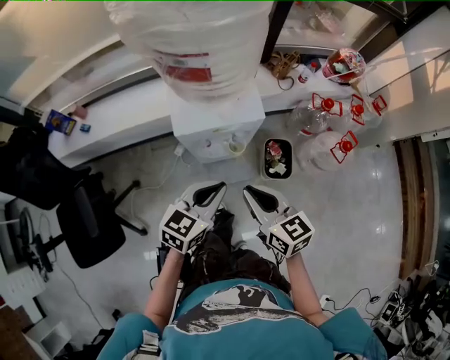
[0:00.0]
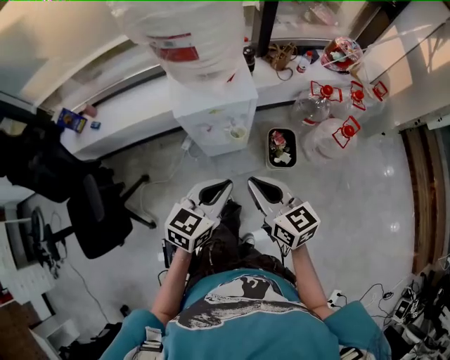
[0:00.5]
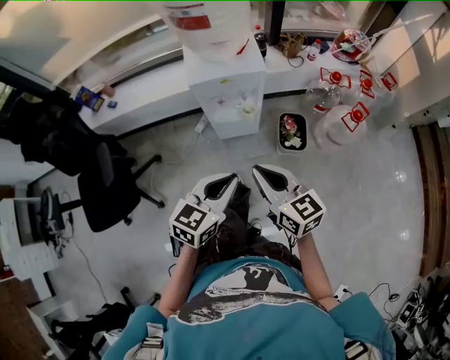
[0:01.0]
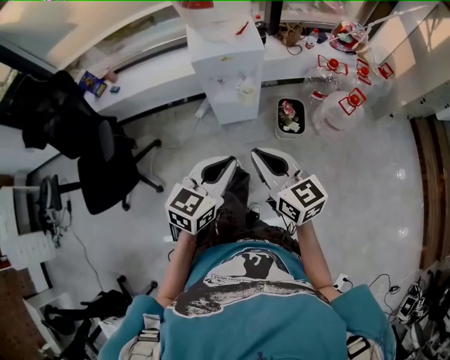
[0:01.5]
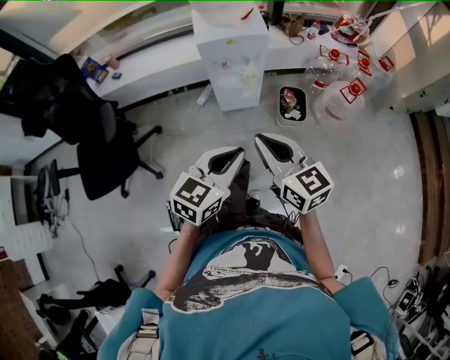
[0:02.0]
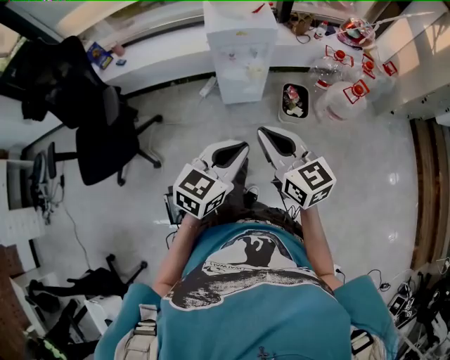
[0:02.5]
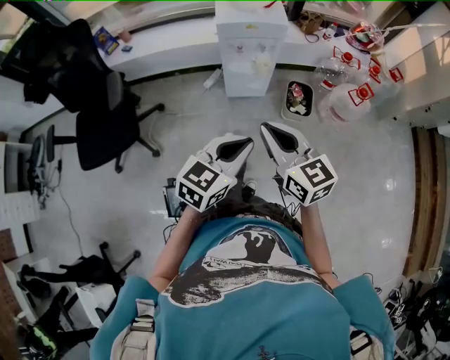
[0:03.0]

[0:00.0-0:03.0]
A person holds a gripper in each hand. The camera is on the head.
0:00.0 to 0:01.5: The grippers both shift backward by some 25 cm.
0:01.5 to 0:03.0: Both grippers move backward, roughly 10 cm.

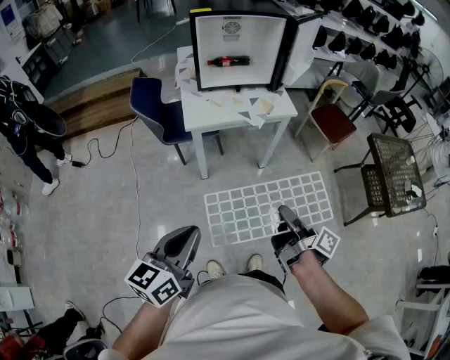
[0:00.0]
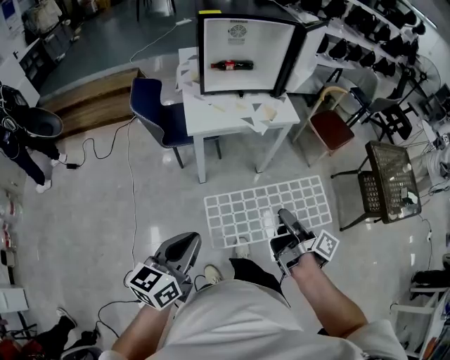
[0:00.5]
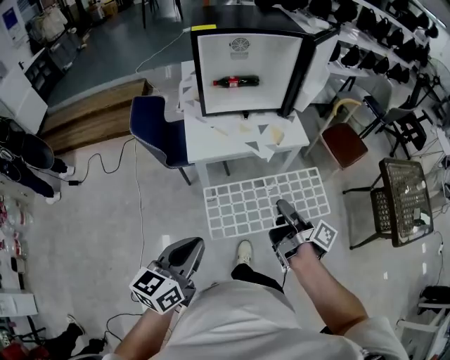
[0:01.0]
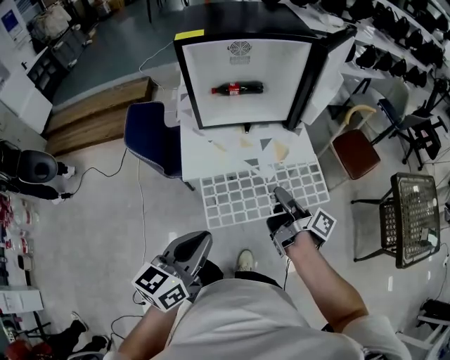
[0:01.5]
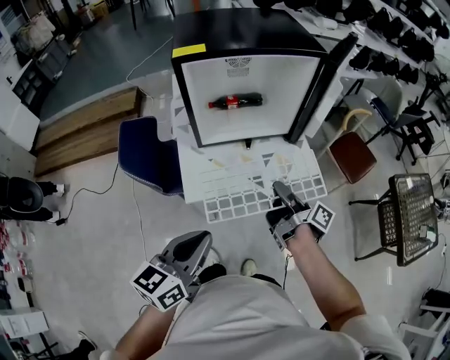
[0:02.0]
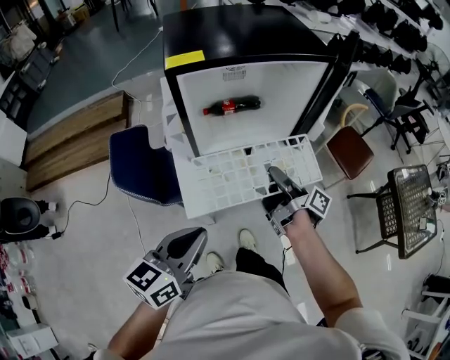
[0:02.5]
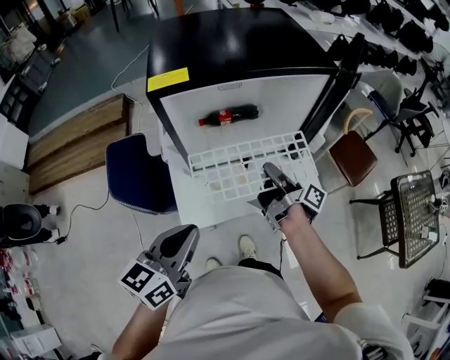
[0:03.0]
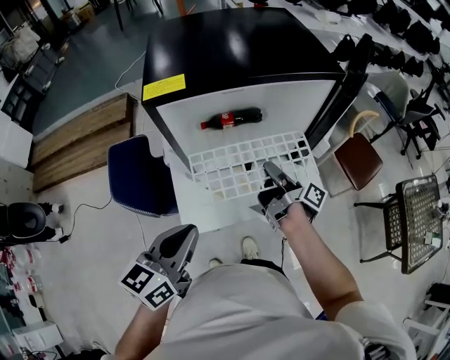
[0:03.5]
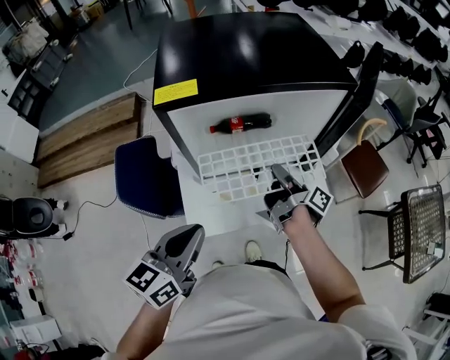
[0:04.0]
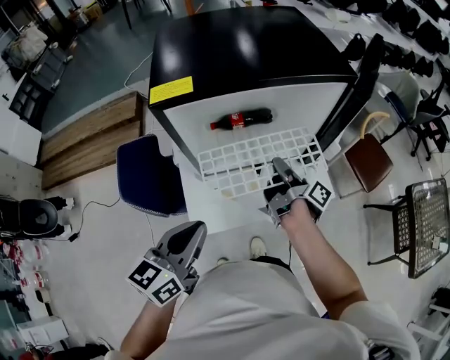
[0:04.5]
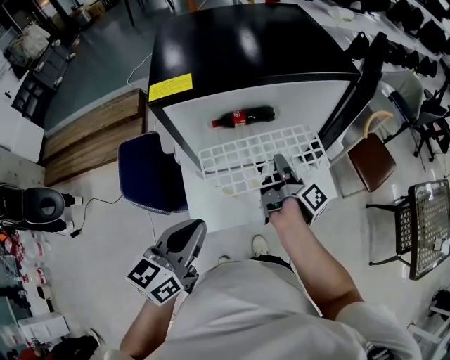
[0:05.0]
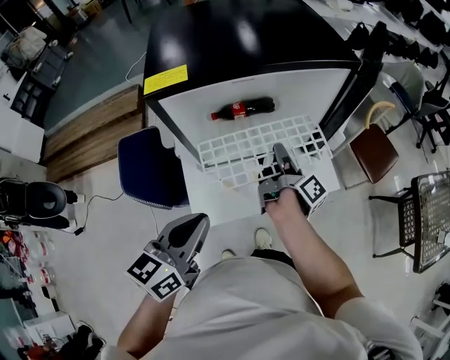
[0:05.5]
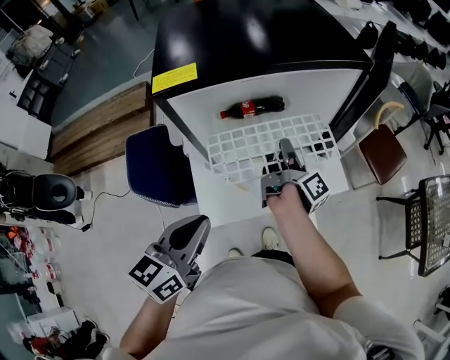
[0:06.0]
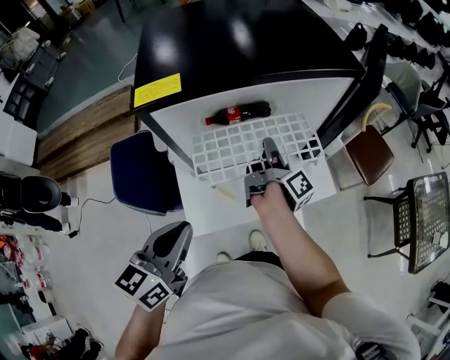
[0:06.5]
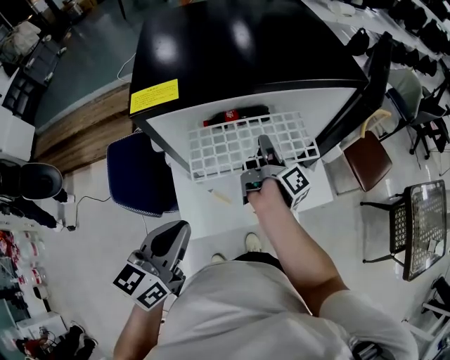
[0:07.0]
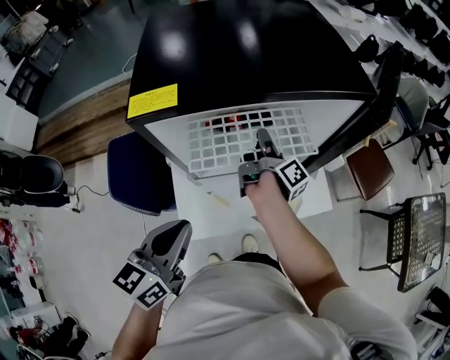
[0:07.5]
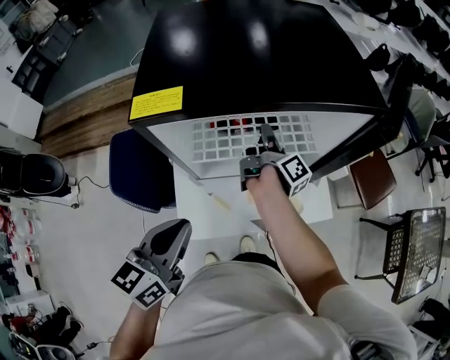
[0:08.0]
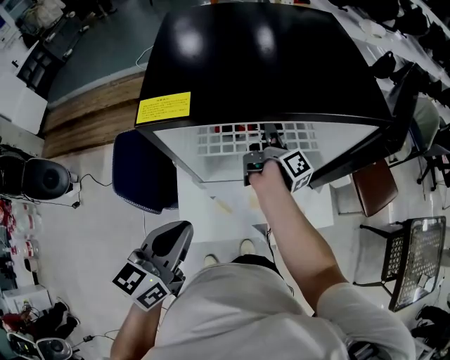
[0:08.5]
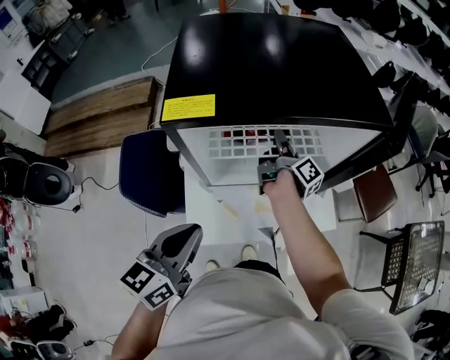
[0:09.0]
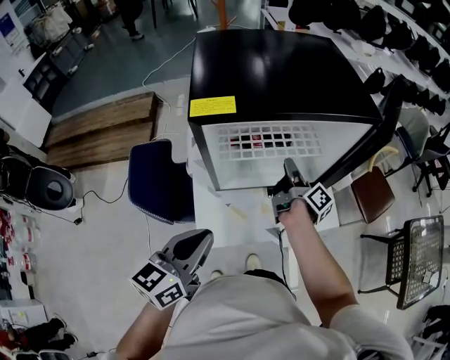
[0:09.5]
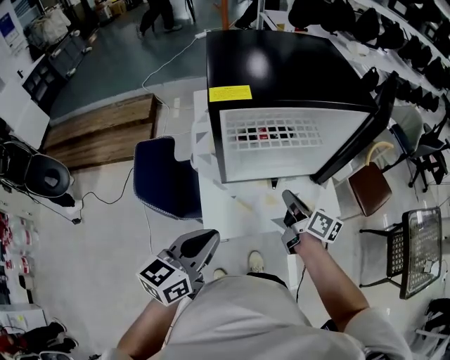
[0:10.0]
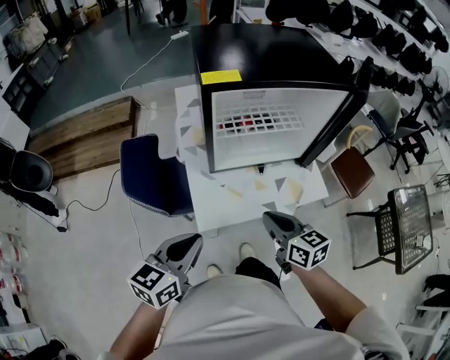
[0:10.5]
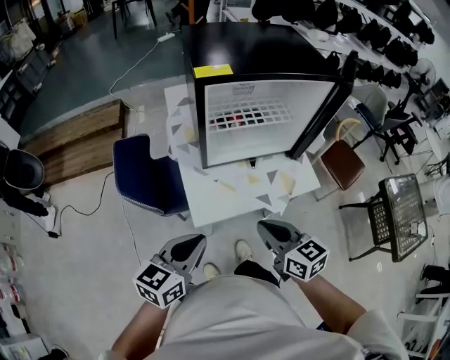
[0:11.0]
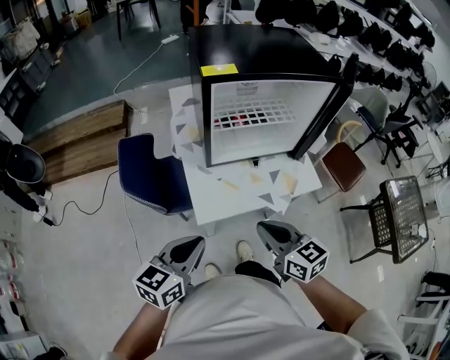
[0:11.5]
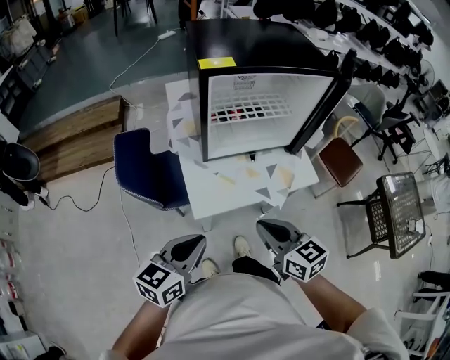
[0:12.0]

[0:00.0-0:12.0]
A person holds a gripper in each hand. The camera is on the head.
0:00.0 to 0:02.0: The left gripper changes place by approximately 35 cm.
0:02.0 to 0:04.0: The left gripper ends up approximately 15 cm from where it was.
0:06.0 to 0:08.0: The left gripper shifts by some 5 cm.
0:08.0 to 0:10.0: The left gripper changes place by some 10 cm.
0:10.0 to 0:12.0: The left gripper moves roughly 10 cm.

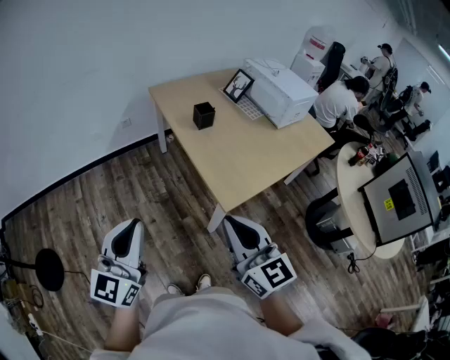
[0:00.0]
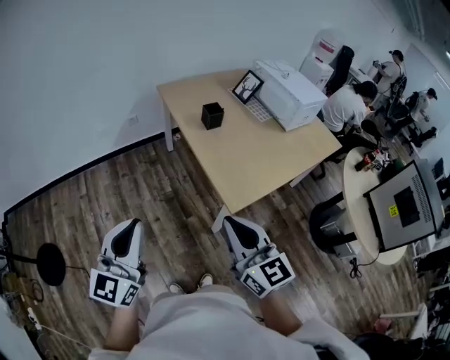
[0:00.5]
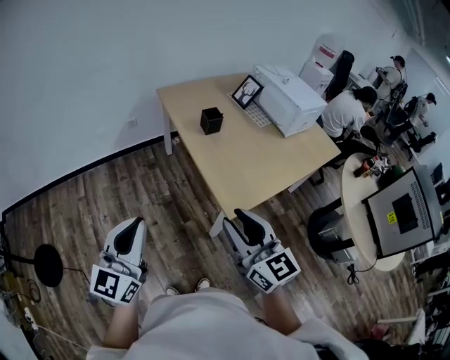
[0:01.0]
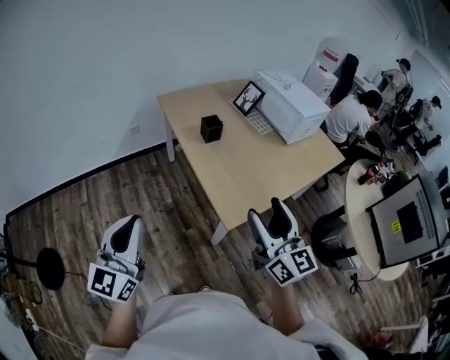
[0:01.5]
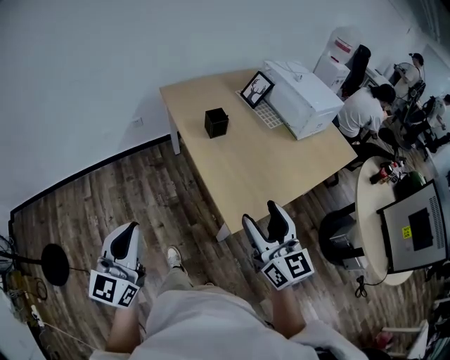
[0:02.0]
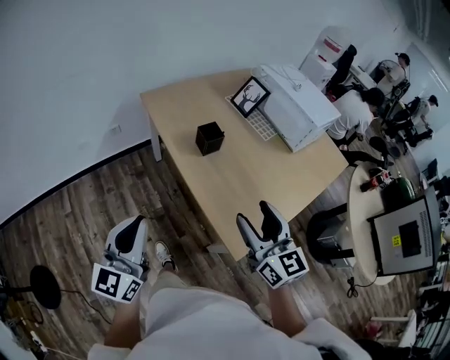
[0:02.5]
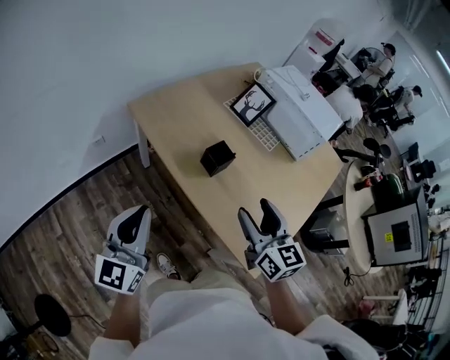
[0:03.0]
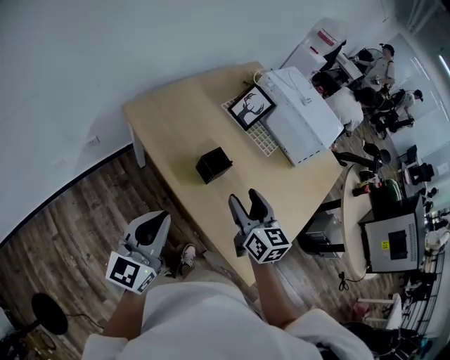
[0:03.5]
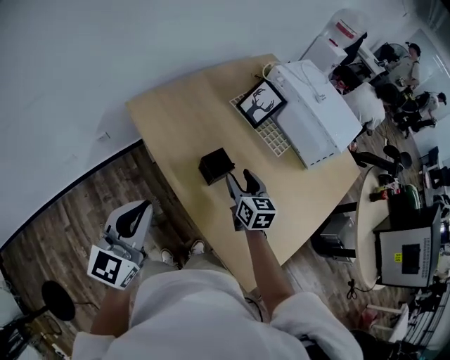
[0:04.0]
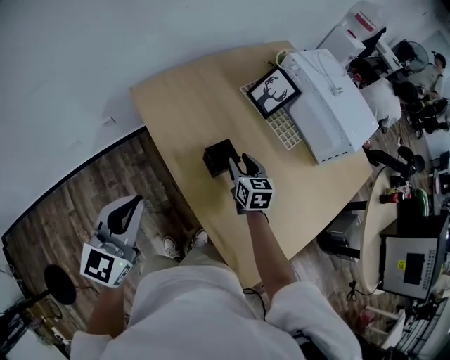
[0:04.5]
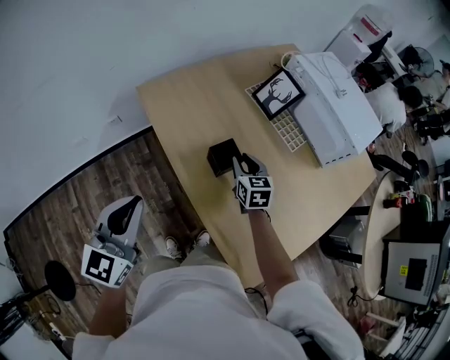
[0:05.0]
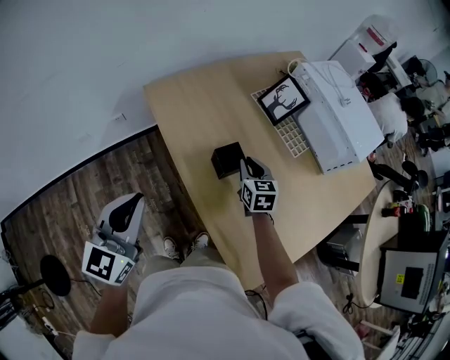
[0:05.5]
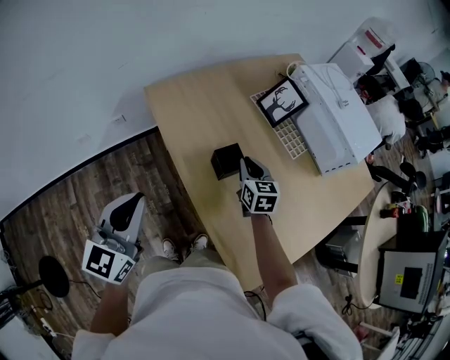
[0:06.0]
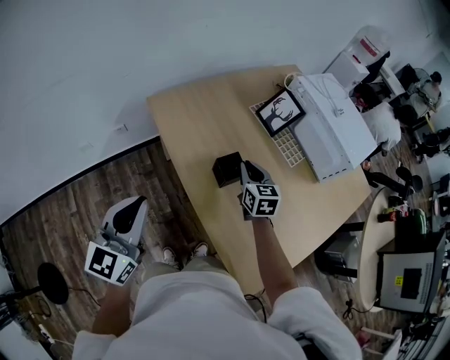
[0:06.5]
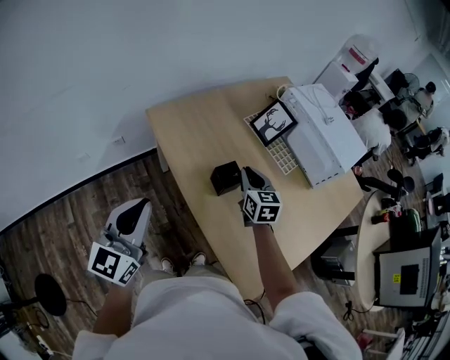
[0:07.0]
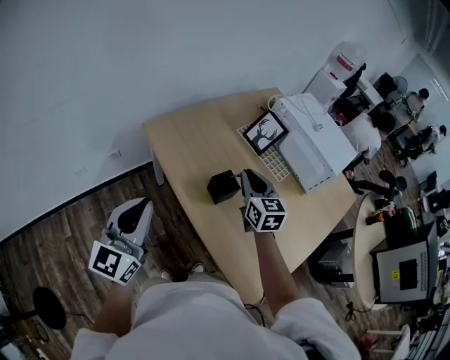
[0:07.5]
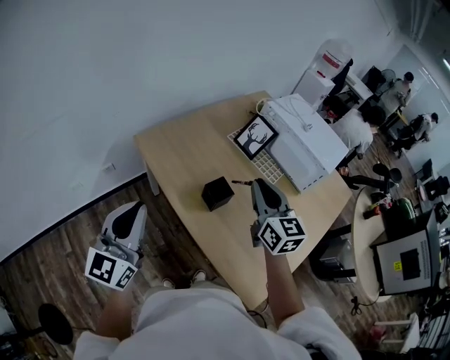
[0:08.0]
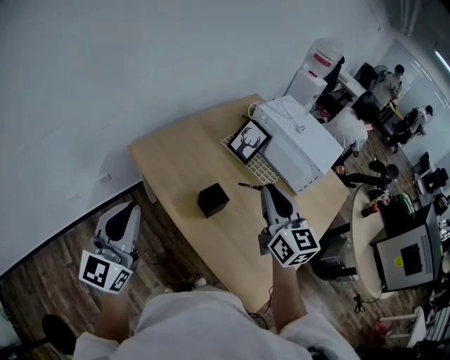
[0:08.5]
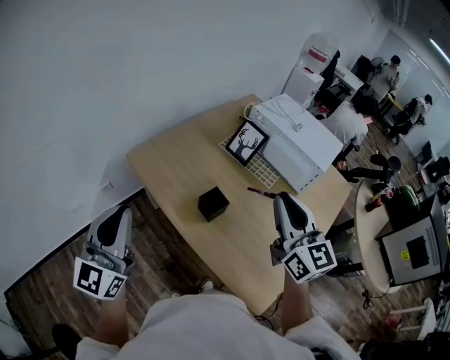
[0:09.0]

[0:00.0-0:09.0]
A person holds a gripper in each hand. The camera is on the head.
0:00.0 to 0:02.0: The right gripper heads forward and to the right, covering about 15 cm, and opens, while the left gripper is displaced forward by about 10 cm.
0:02.0 to 0:04.5: Both grippers are carried forward, about 50 cm. The left gripper swivels about 20 degrees. The right gripper moves downward, about 25 cm, tilts its fingers about 30 degrees downward, and closes its fingers.
0:04.5 to 0:07.0: The right gripper is displaced upward by about 10 cm, and closes up; the left gripper ends up some 5 cm from where it was.
0:07.0 to 0:09.0: The right gripper travels upward and backward by about 25 cm, and turns by about 30 degrees; the left gripper travels upward by approximately 10 cm.

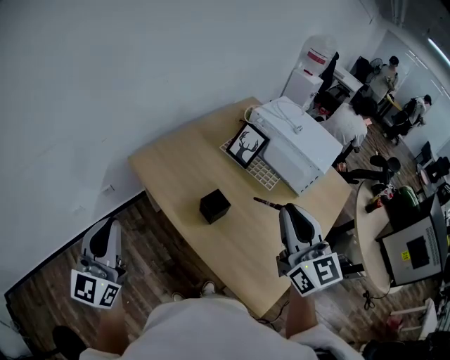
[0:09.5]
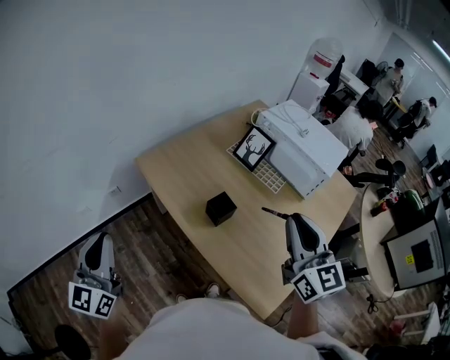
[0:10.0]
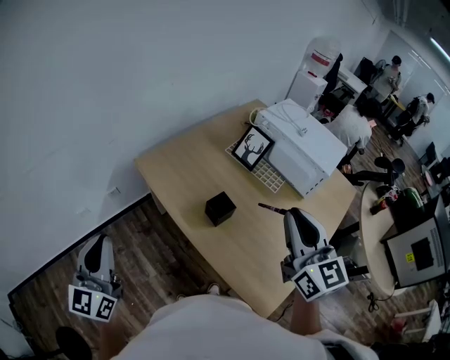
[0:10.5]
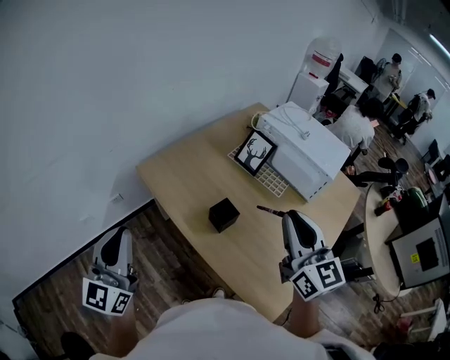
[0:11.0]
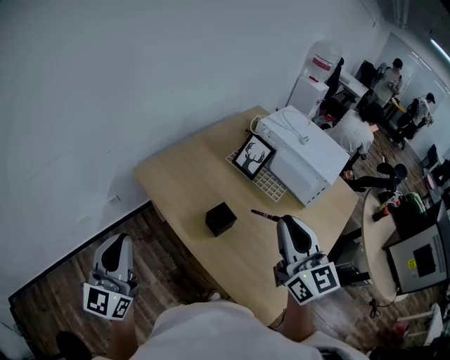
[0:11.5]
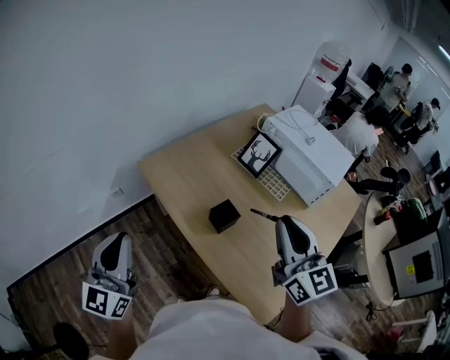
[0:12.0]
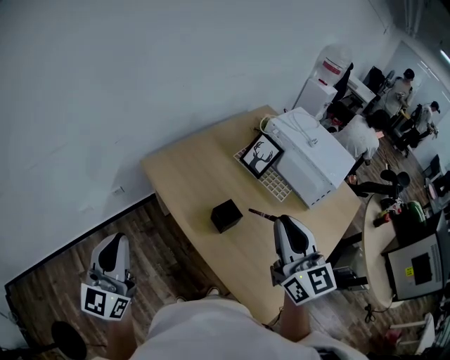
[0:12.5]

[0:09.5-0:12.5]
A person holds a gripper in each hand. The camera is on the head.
0:09.5 to 0:12.5: There are only small adjustments of the grippers.
